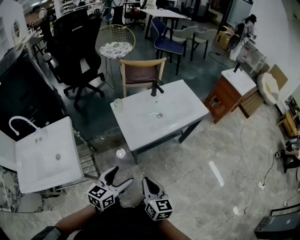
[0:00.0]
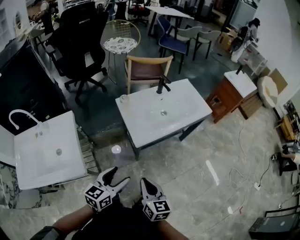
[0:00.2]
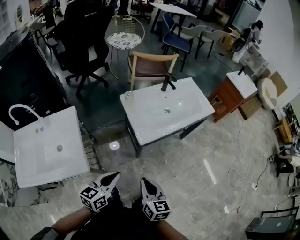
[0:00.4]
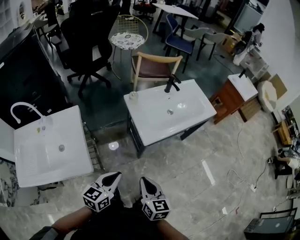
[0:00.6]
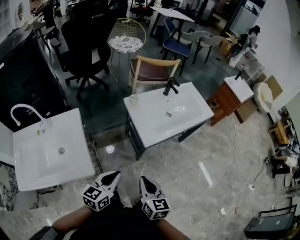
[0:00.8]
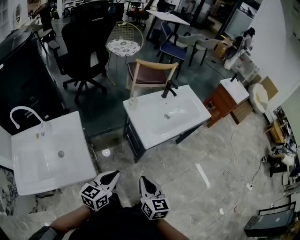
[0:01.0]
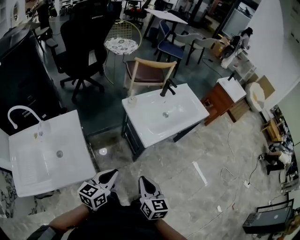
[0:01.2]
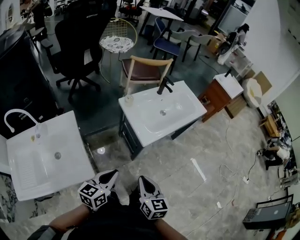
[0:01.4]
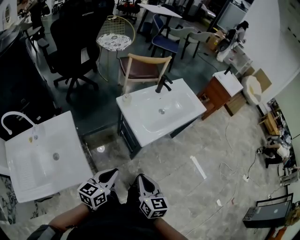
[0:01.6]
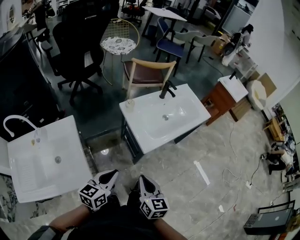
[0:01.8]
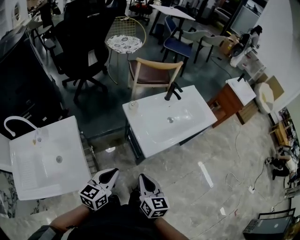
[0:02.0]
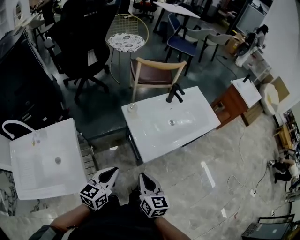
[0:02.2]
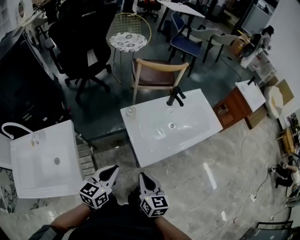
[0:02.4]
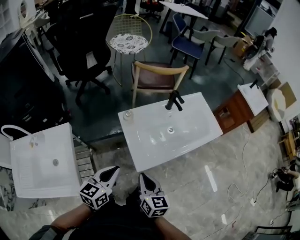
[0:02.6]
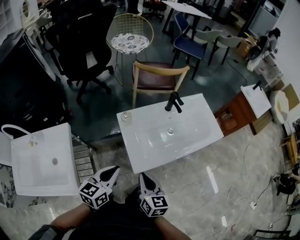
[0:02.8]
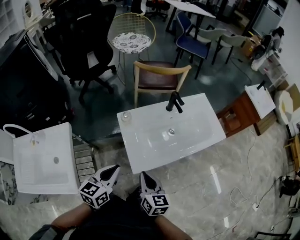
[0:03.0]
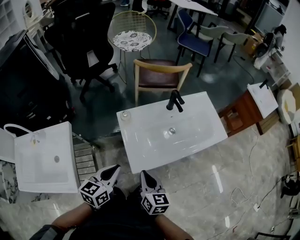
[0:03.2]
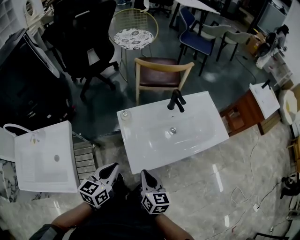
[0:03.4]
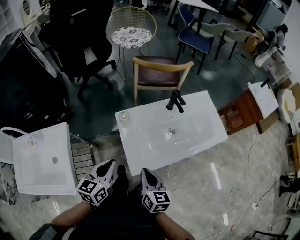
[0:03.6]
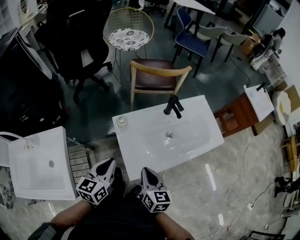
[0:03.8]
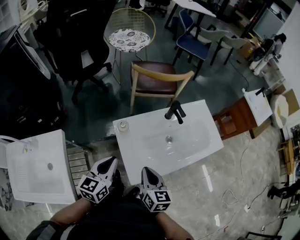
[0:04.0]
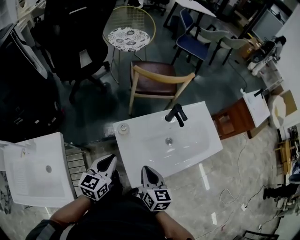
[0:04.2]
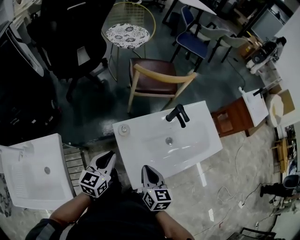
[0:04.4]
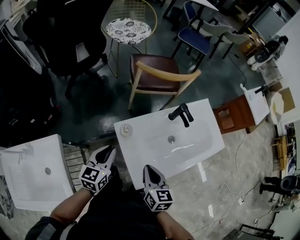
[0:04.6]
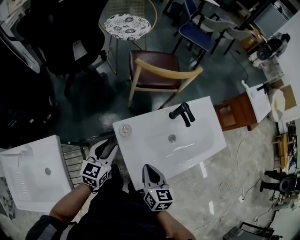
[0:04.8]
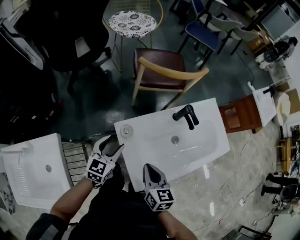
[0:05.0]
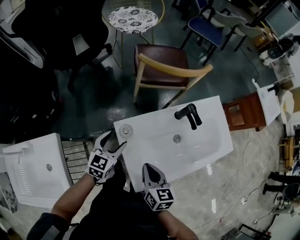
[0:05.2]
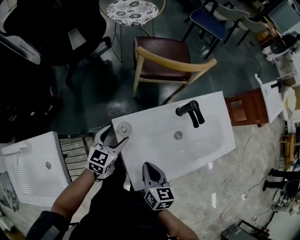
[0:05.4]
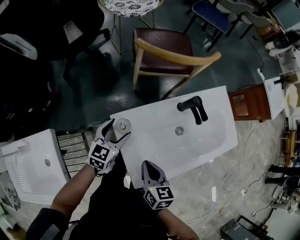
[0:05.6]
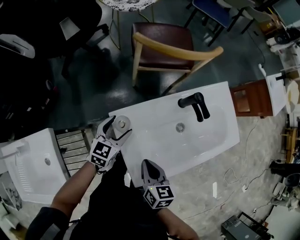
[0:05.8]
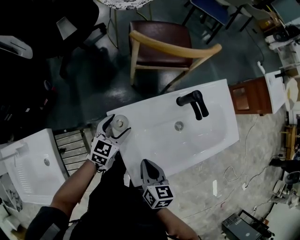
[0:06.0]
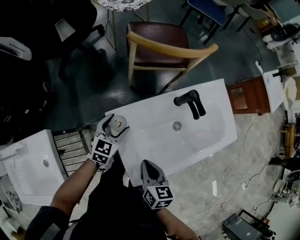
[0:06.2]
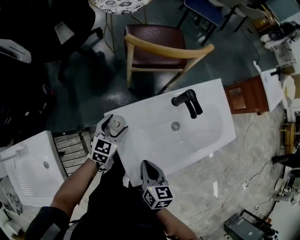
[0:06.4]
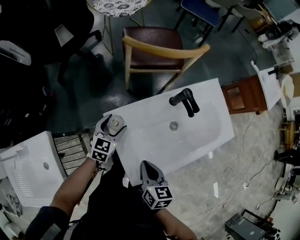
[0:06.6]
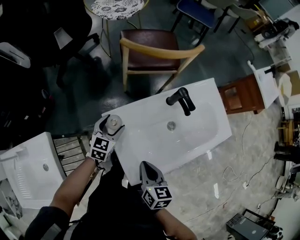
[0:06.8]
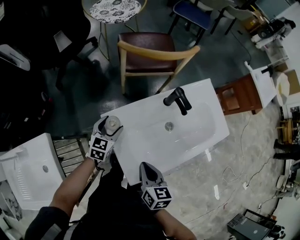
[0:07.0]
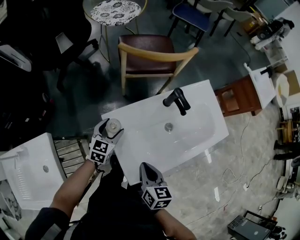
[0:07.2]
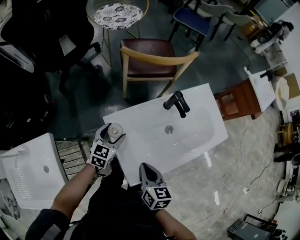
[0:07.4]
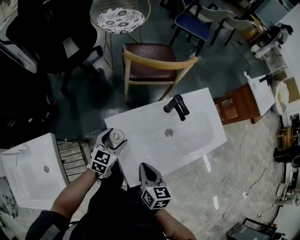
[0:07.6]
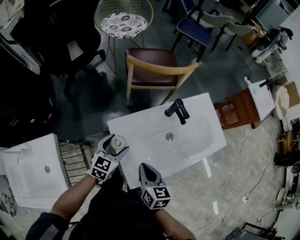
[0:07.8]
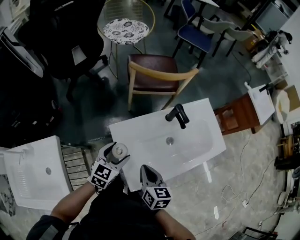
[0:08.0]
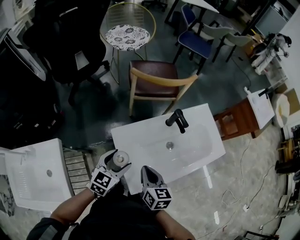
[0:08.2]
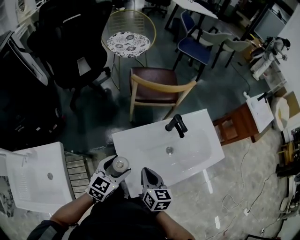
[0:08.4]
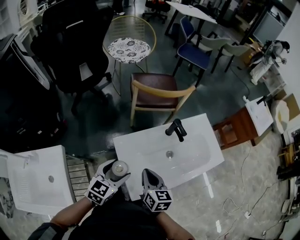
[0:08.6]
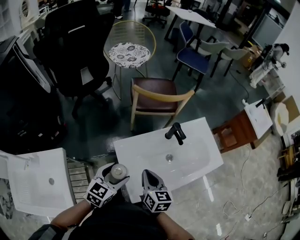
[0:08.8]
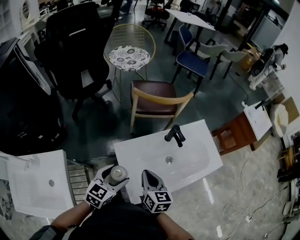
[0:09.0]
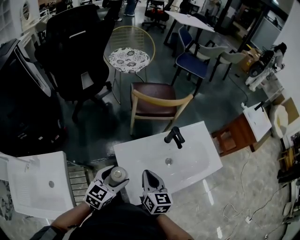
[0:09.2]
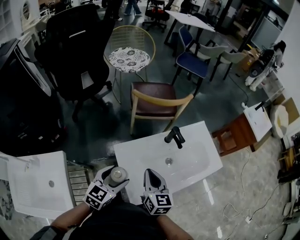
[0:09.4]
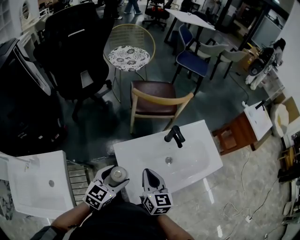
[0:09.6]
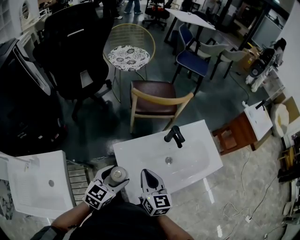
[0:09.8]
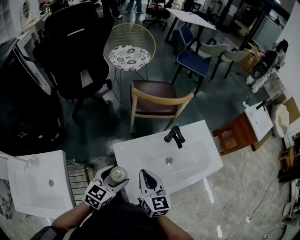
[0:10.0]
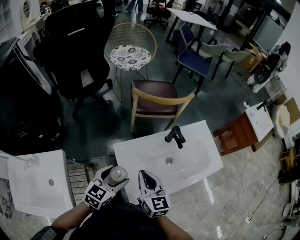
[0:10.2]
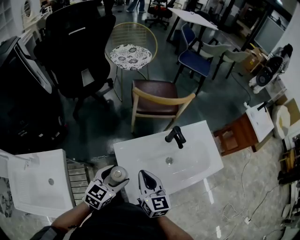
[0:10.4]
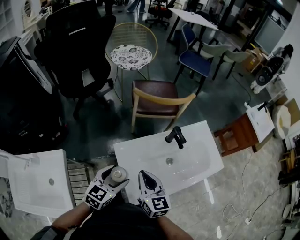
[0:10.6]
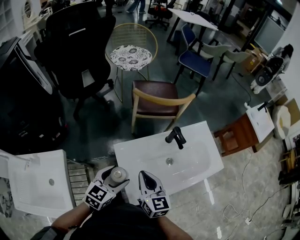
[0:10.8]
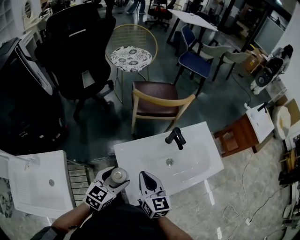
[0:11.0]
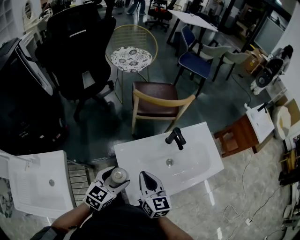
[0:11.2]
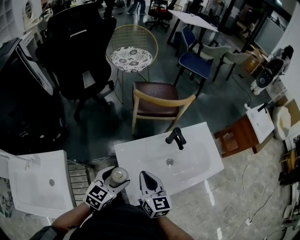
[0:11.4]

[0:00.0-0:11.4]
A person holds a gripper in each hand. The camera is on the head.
0.0 to 1.4 s: The grippers both shift to the left by some 15 cm. The left gripper closes its fingers.
1.4 to 2.8 s: Both grippers move forward, about 25 cm.
2.8 to 4.2 s: The two grippers go about 15 cm forward.
4.2 to 5.6 s: The left gripper shifts approximately 20 cm forward and downward, and opens its fingers; the right gripper moves downward and forward, about 10 cm.
5.6 to 7.2 s: The right gripper ends up some 5 cm from where it was.
7.2 to 8.6 s: The left gripper moves upward and backward, some 20 cm. The right gripper shifts some 5 cm upward.
8.6 to 10.0 s: The right gripper heads upward, covering some 5 cm.
10.0 to 11.4 s: Neither gripper changes place.

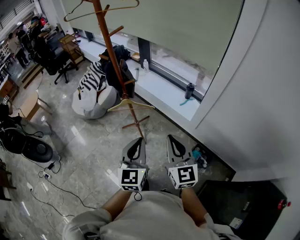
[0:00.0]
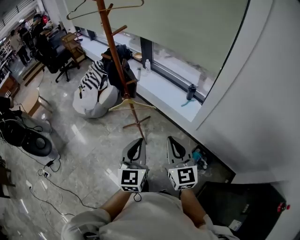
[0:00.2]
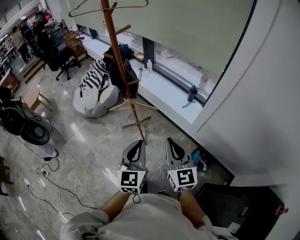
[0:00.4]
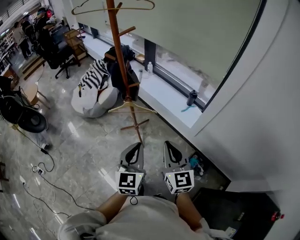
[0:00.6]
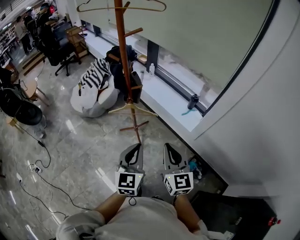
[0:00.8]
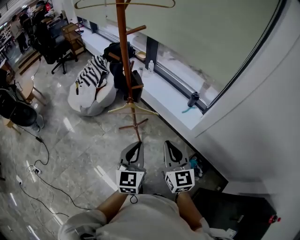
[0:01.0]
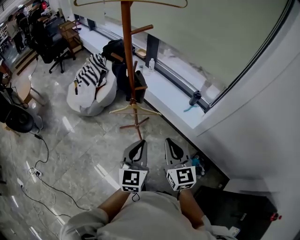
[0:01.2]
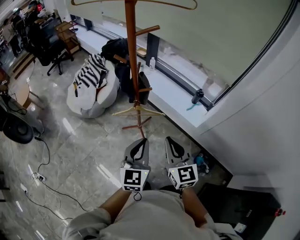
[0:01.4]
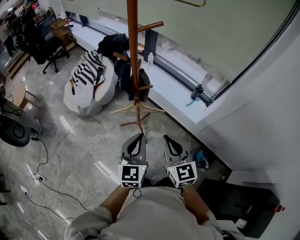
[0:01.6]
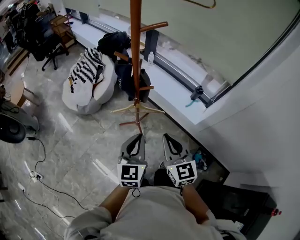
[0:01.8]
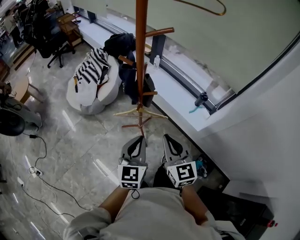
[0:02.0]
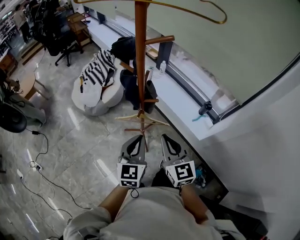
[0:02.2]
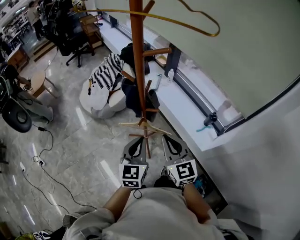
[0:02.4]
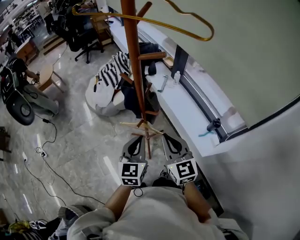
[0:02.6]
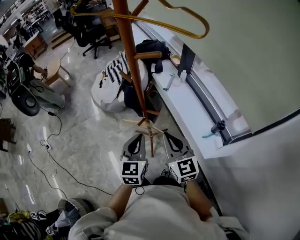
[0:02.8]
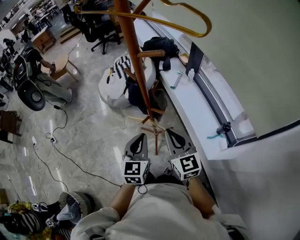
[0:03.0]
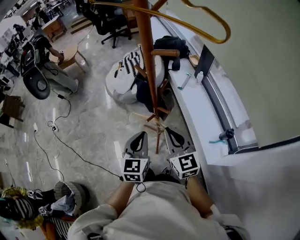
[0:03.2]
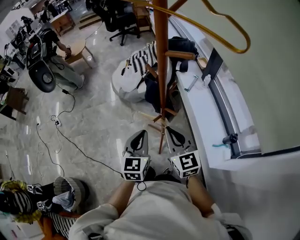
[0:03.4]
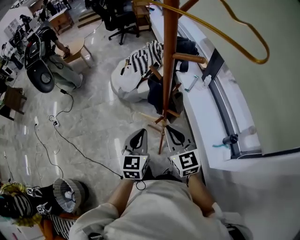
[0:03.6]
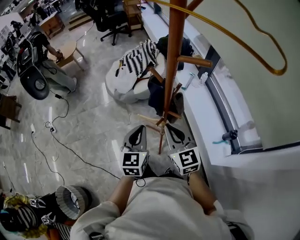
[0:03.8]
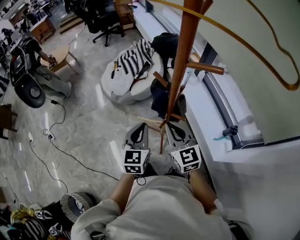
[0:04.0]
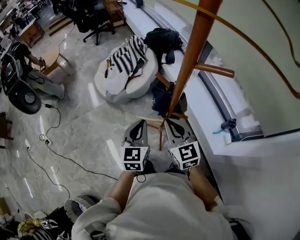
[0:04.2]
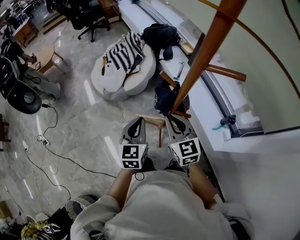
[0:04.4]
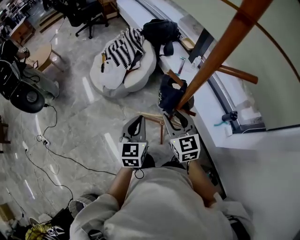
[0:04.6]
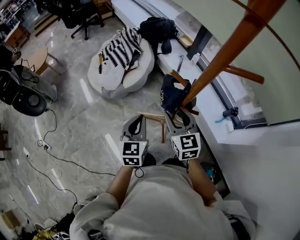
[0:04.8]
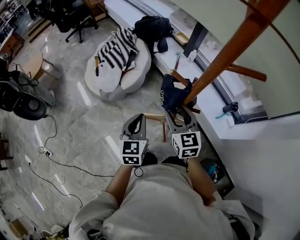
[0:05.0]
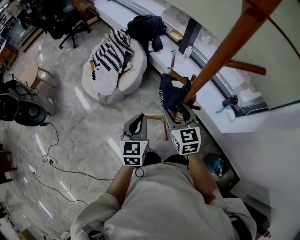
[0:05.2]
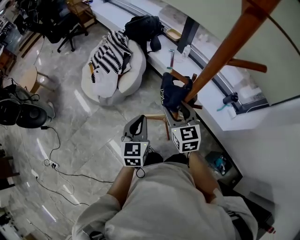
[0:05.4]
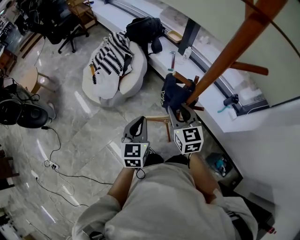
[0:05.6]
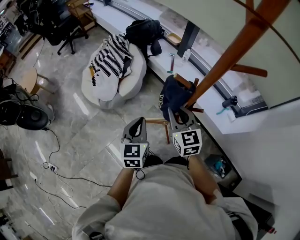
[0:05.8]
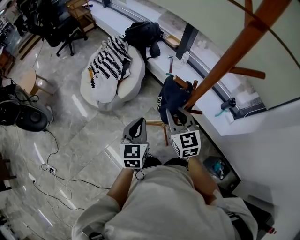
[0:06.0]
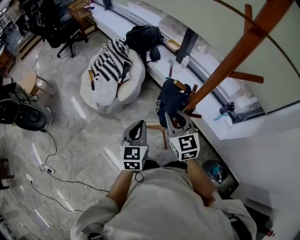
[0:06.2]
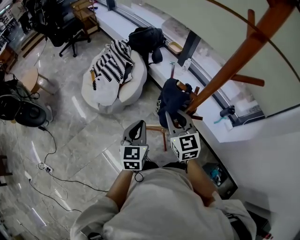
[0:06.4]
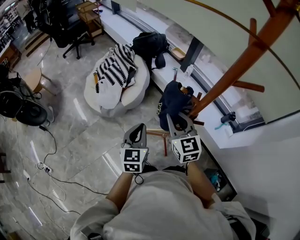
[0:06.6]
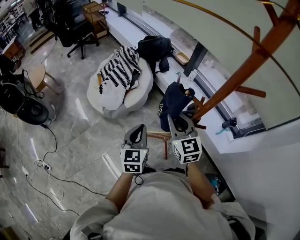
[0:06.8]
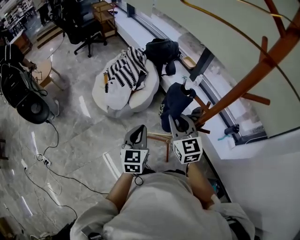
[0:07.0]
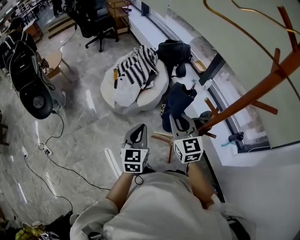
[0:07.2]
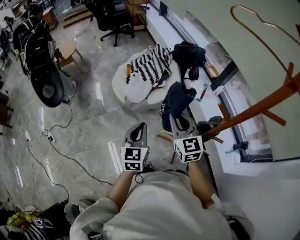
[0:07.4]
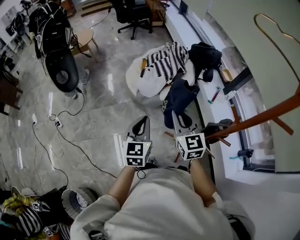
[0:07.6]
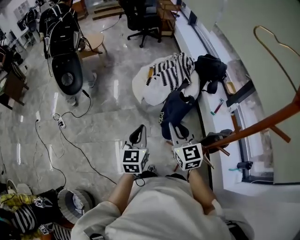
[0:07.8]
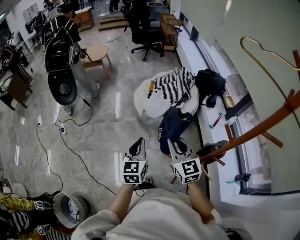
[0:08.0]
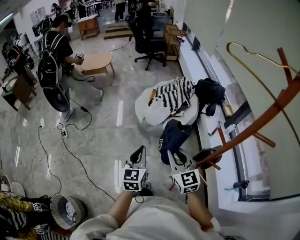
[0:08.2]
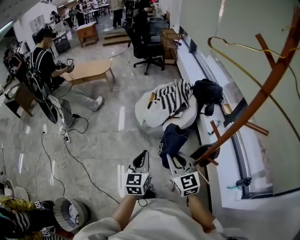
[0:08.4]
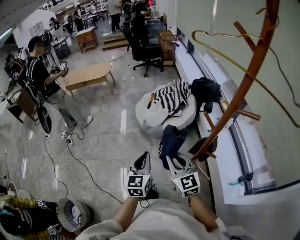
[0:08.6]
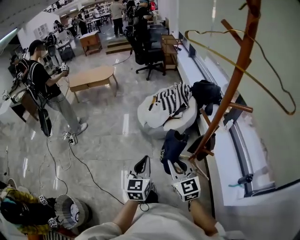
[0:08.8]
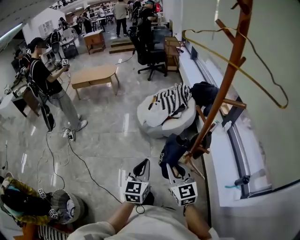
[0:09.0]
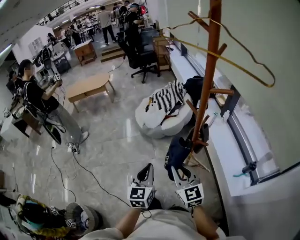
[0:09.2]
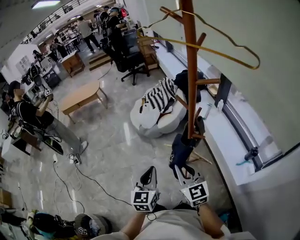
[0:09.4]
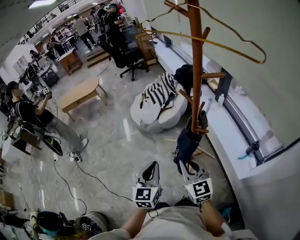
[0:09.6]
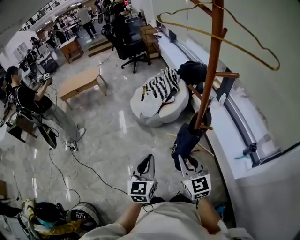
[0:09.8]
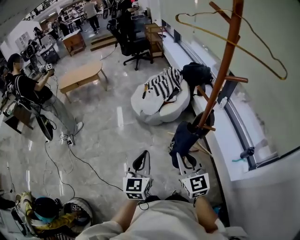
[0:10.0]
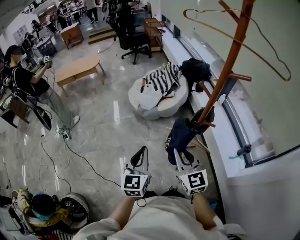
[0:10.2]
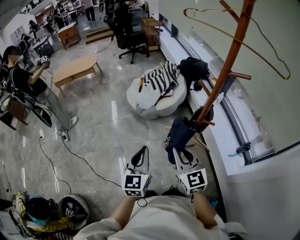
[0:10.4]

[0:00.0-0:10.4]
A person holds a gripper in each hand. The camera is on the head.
0.0 to 1.4 s: The grippers both shift forward and to the left by roughly 20 cm.
1.4 to 3.0 s: The left gripper moves some 20 cm, and turns by roughly 30 degrees. The right gripper shifts by about 20 cm, and rotates approximately 30 degrees.
3.0 to 4.4 s: Both grippers travel together forward and to the left, about 20 cm.
4.4 to 6.0 s: The grippers both shift to the left and forward by approximately 10 cm. The right gripper opens and closes again.
6.0 to 7.4 s: Both grippers move to the left, roughly 15 cm. The left gripper swivels roughly 20 degrees. Meanwhile the right gripper swivels about 20 degrees.
7.4 to 9.0 s: The two grippers go about 30 cm backward.
9.0 to 10.4 s: The left gripper heads to the left, covering roughly 5 cm. Meanwhile the right gripper shifts by some 5 cm.

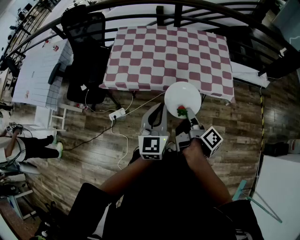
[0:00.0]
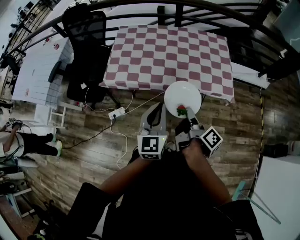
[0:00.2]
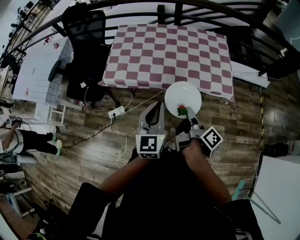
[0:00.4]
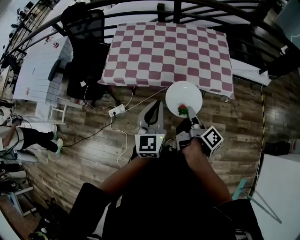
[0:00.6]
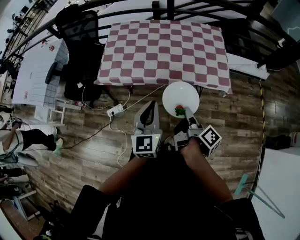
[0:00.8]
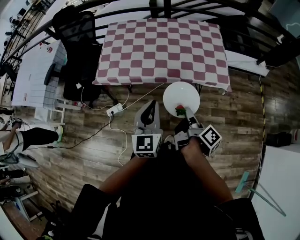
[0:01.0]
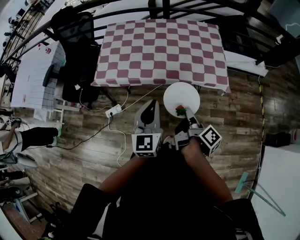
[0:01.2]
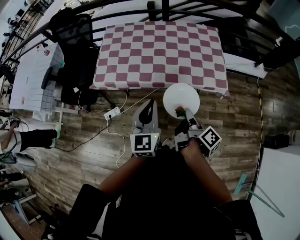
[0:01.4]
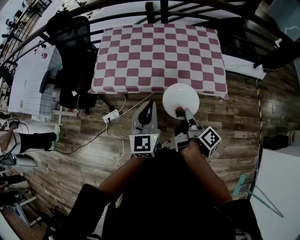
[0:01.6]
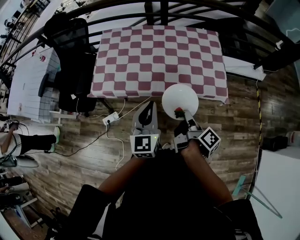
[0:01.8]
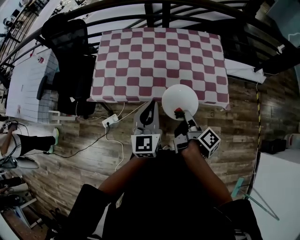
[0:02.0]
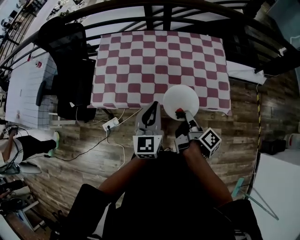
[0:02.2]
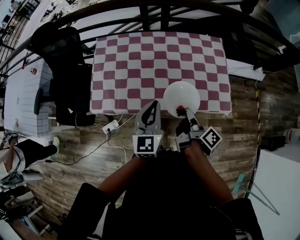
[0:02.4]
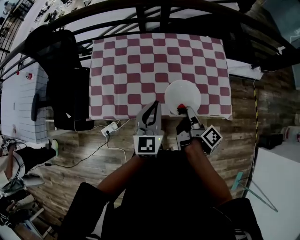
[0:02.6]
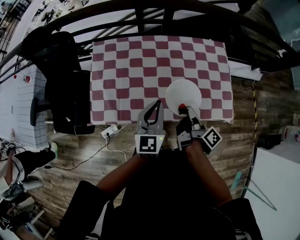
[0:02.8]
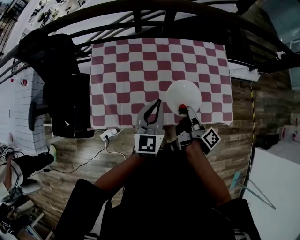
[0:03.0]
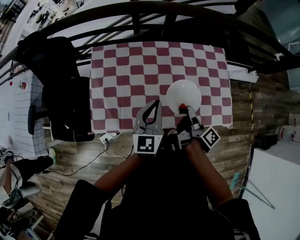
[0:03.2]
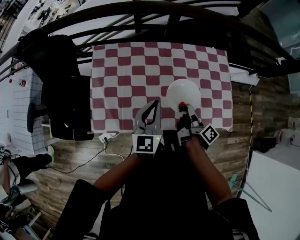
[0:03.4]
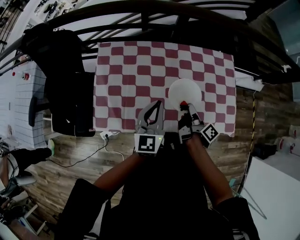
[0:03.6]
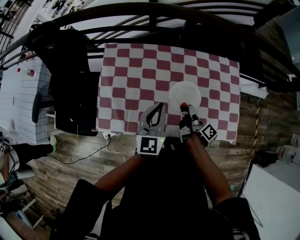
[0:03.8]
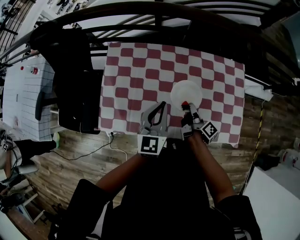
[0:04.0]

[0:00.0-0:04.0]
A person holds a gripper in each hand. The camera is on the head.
1.4 to 2.6 s: The left gripper changes place by about 25 cm.
2.6 to 4.0 s: The left gripper moves roughly 15 cm.
